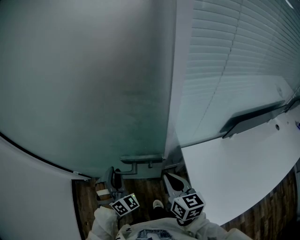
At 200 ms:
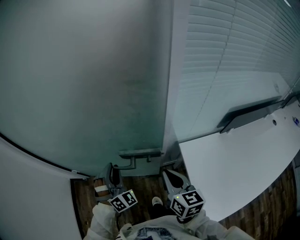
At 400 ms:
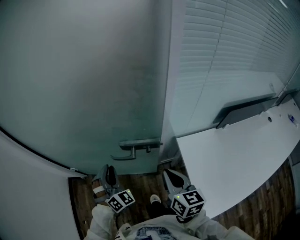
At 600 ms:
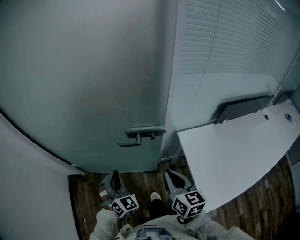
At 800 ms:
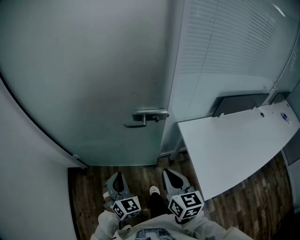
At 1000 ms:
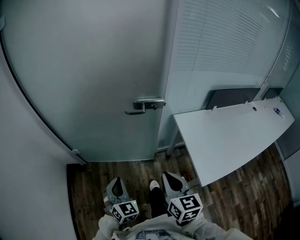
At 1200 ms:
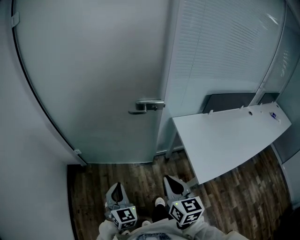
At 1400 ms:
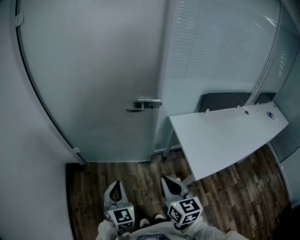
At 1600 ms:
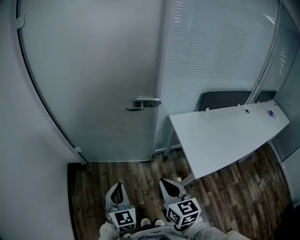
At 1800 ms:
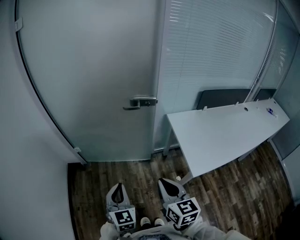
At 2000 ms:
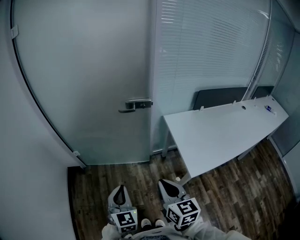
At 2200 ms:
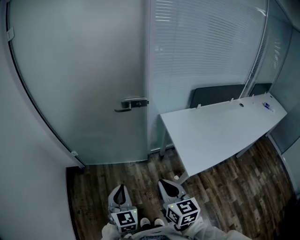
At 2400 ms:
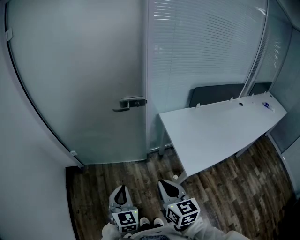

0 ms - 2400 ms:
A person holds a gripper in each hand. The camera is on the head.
0 ms - 1200 ms: The grippers both shift backward and to the left by some 40 cm. The left gripper rolls counterclockwise, seen from behind, by roughly 40 degrees, and closes its fingers.
1200 ms - 2400 ms: The left gripper shifts some 10 cm backward and to the right, while the right gripper moves backward, approximately 10 cm.

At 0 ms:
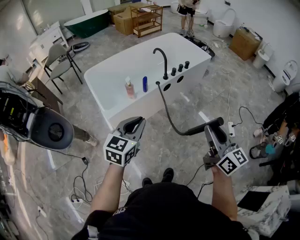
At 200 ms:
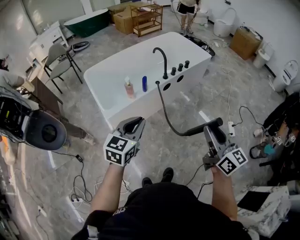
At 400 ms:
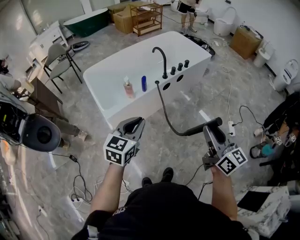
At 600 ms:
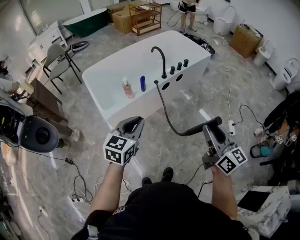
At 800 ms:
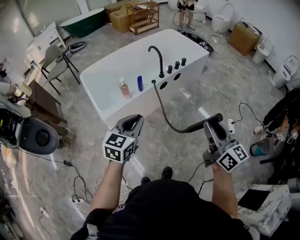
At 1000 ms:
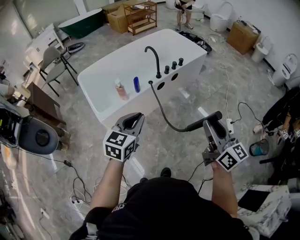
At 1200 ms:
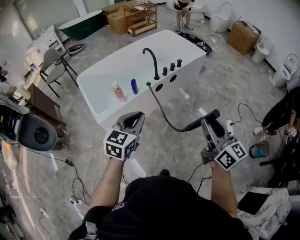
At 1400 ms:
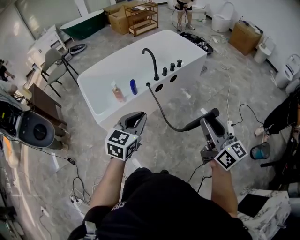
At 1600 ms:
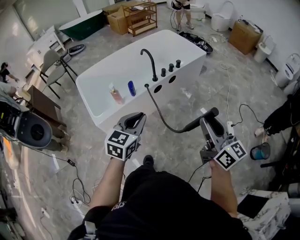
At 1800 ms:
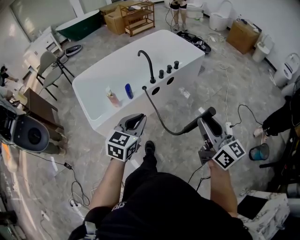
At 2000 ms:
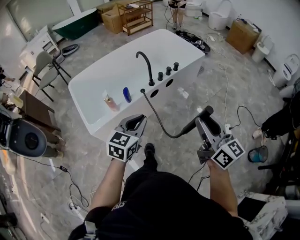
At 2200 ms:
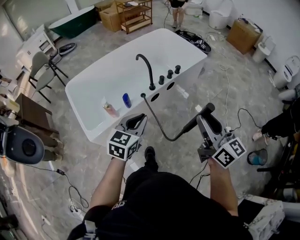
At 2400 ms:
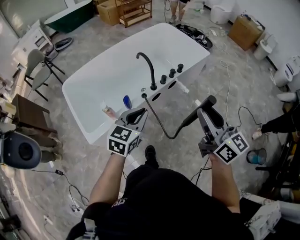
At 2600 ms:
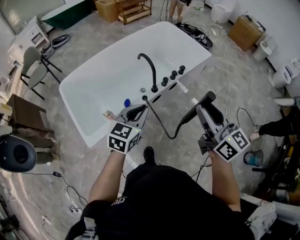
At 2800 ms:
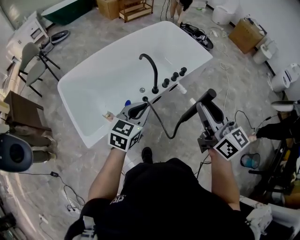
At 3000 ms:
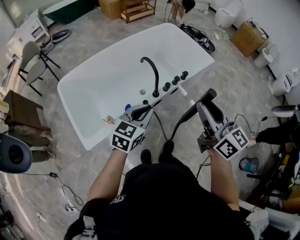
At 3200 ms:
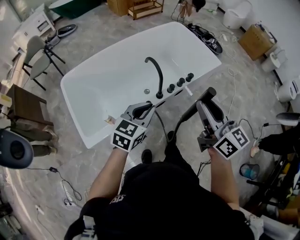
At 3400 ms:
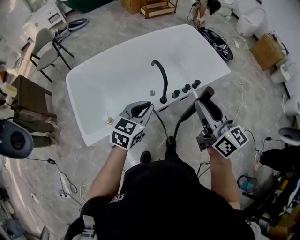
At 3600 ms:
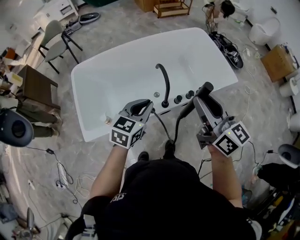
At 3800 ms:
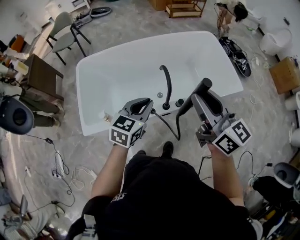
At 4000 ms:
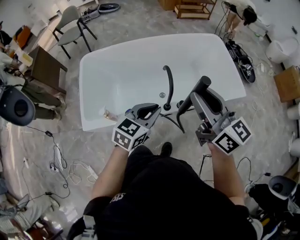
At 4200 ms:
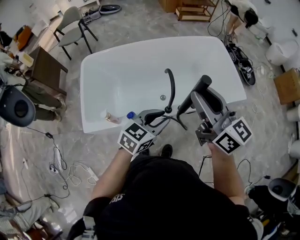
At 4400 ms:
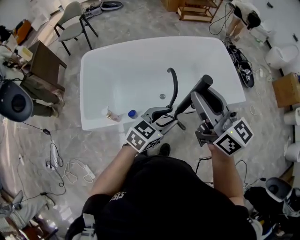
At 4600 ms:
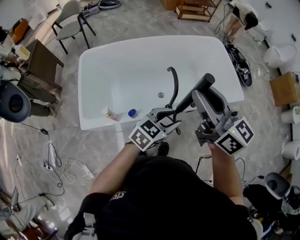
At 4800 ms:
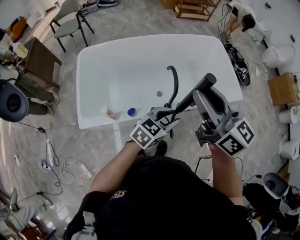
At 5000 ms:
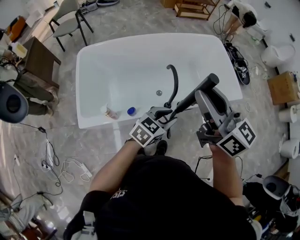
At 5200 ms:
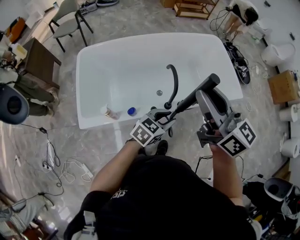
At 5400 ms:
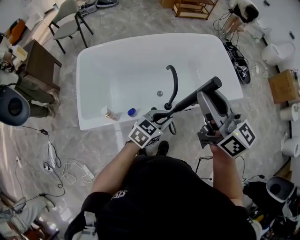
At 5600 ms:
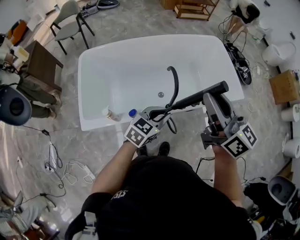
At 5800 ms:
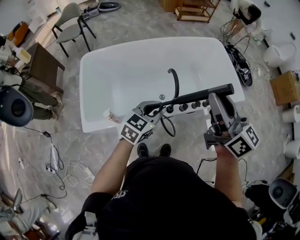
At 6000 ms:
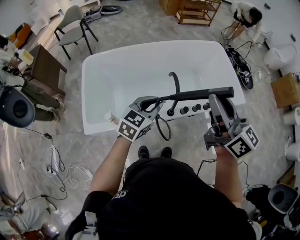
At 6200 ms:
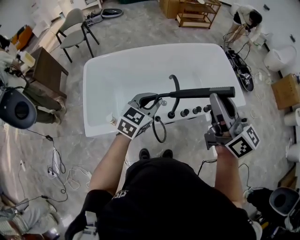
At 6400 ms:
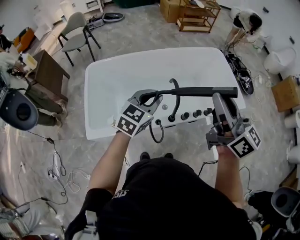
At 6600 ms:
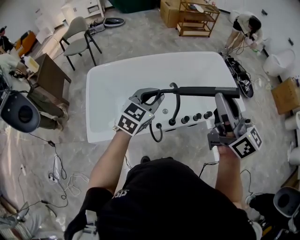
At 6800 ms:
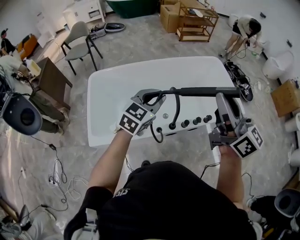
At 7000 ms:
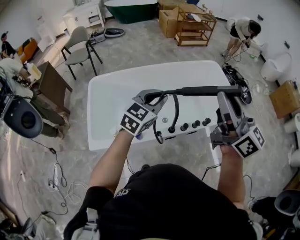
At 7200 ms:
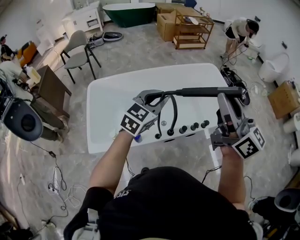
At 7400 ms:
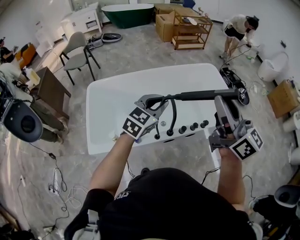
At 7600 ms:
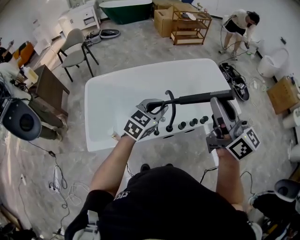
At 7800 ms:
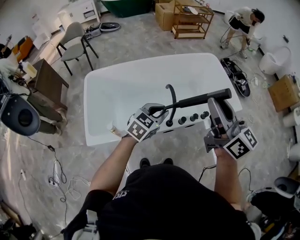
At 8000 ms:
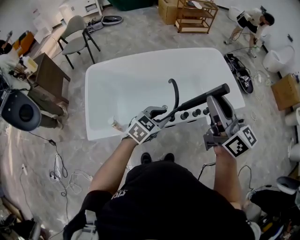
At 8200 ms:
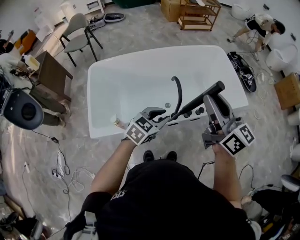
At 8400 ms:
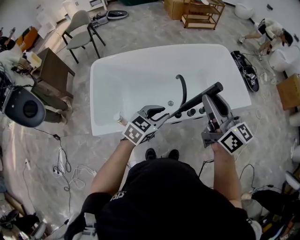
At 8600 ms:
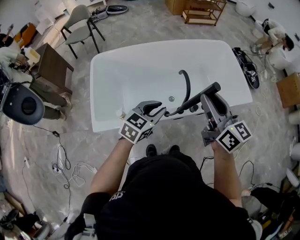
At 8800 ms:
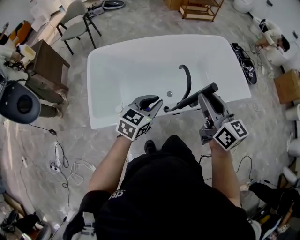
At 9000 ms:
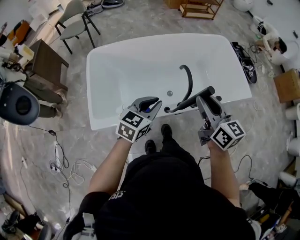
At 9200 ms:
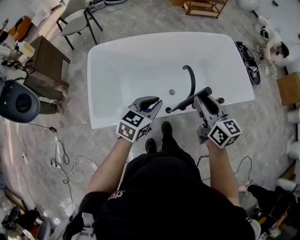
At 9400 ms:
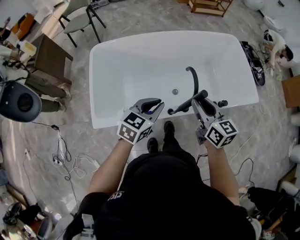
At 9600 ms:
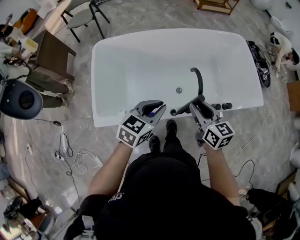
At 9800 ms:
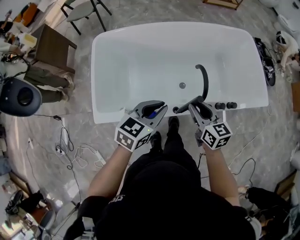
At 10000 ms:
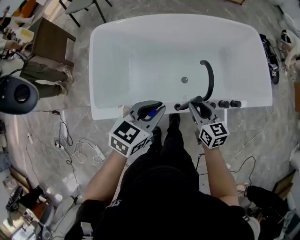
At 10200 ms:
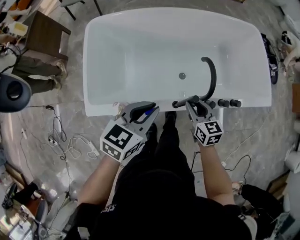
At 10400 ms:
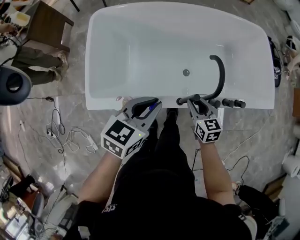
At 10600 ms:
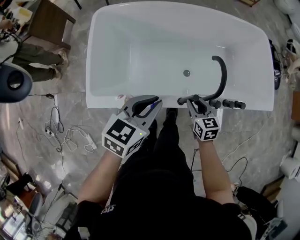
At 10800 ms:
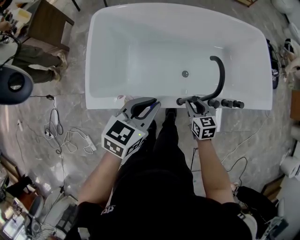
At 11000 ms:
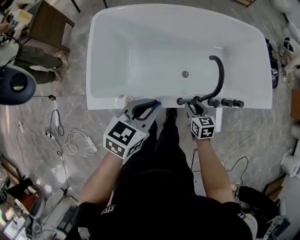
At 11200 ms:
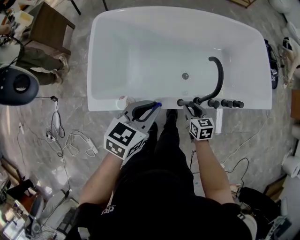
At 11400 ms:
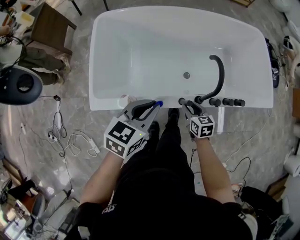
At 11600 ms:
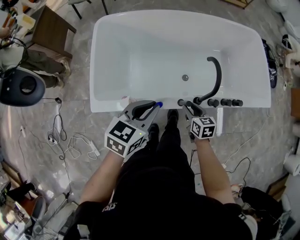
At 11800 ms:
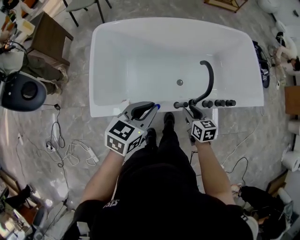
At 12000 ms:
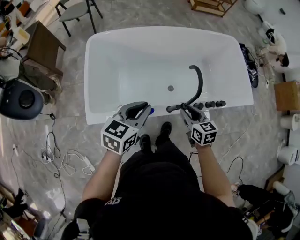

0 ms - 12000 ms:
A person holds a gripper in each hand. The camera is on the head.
0 ms - 1600 ms: The two grippers go approximately 15 cm to the right and forward.
1600 ms - 3000 ms: The two grippers go approximately 40 cm forward.
3000 ms - 4400 ms: The left gripper shifts about 15 cm forward and to the right, and opens; the right gripper heads forward, covering some 20 cm, and turns by approximately 30 degrees.
4400 ms - 6000 ms: The left gripper travels to the left and forward by some 10 cm, and closes up.
6000 ms - 7600 ms: The grippers both shift upward by about 5 cm.
7600 ms - 9000 ms: The left gripper goes some 15 cm to the left and downward. The right gripper moves downward and to the left, some 20 cm, and rotates approximately 20 degrees.
9000 ms - 10400 ms: The left gripper goes some 10 cm downward and forward. The right gripper heads downward, covering about 30 cm, and turns by about 30 degrees.
10400 ms - 12000 ms: The right gripper heads upward and backward, covering some 10 cm, while the left gripper travels to the left and upward by roughly 10 cm.

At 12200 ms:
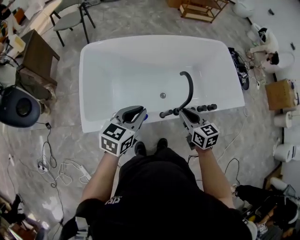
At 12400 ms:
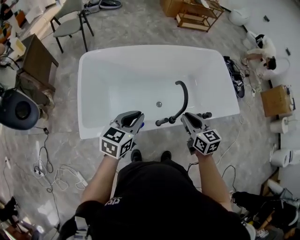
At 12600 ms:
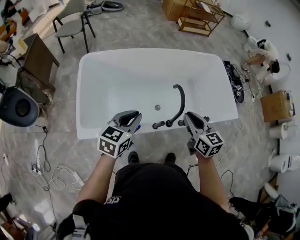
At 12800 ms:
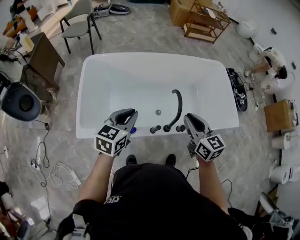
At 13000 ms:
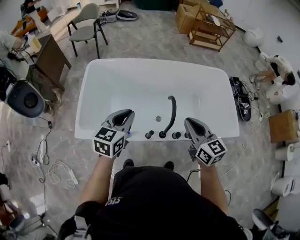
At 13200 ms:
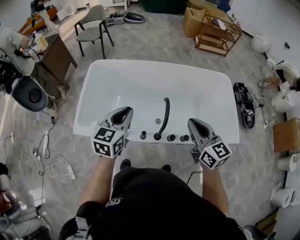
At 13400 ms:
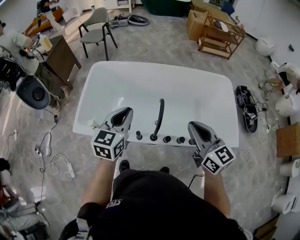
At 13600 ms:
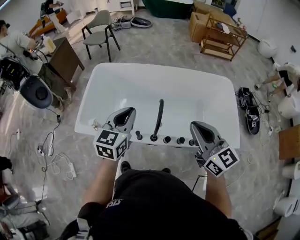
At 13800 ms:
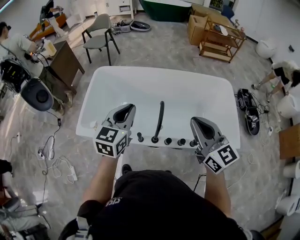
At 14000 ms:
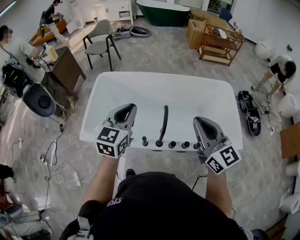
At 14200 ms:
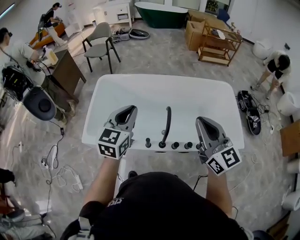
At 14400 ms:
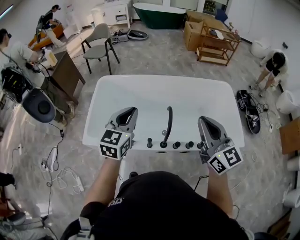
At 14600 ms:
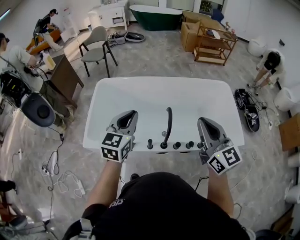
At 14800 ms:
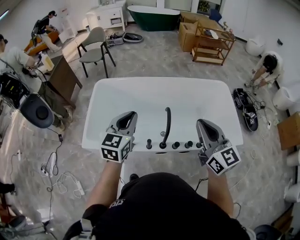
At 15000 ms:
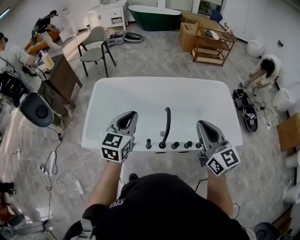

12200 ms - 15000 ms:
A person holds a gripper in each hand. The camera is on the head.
12200 ms - 13600 ms: The right gripper changes place by about 35 cm, and rotates about 30 degrees. Meanwhile the left gripper moves approximately 25 cm, and turns by approximately 30 degrees.
13600 ms - 15000 ms: The right gripper shifts by some 5 cm. The left gripper travels to the left by roughly 5 cm.

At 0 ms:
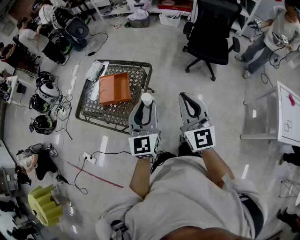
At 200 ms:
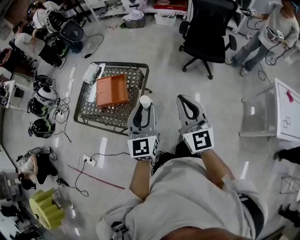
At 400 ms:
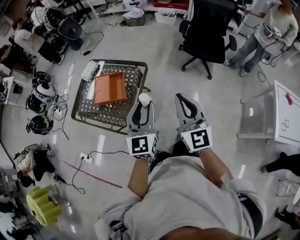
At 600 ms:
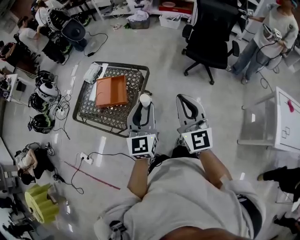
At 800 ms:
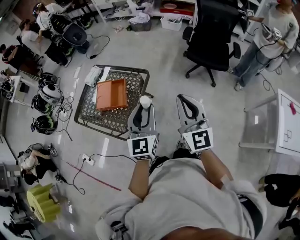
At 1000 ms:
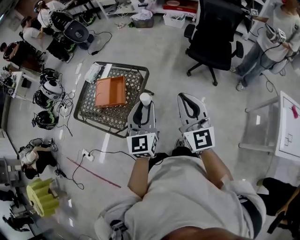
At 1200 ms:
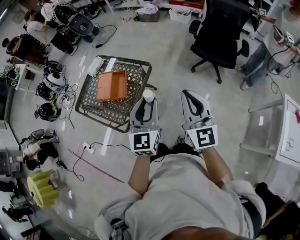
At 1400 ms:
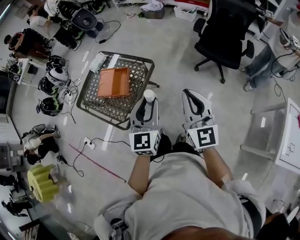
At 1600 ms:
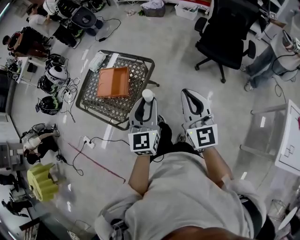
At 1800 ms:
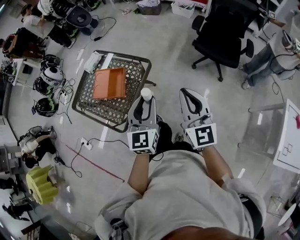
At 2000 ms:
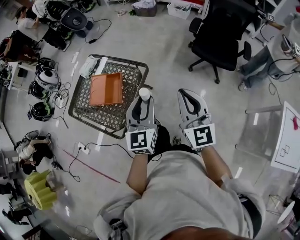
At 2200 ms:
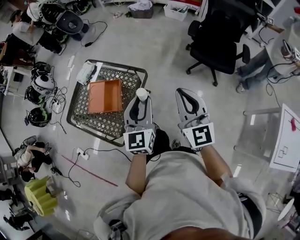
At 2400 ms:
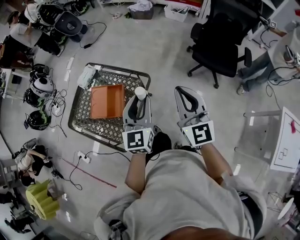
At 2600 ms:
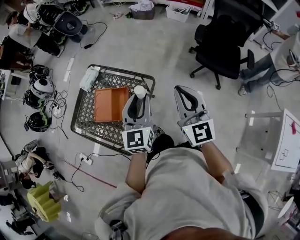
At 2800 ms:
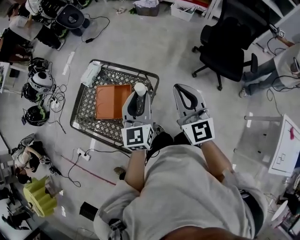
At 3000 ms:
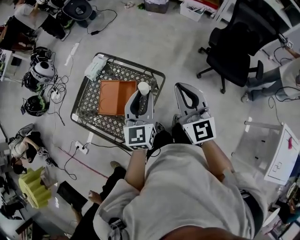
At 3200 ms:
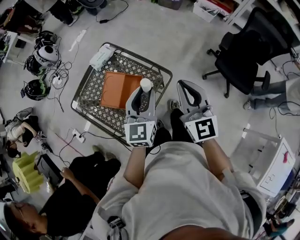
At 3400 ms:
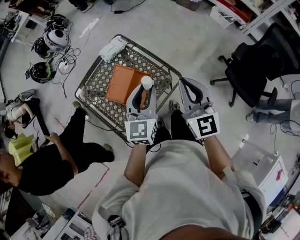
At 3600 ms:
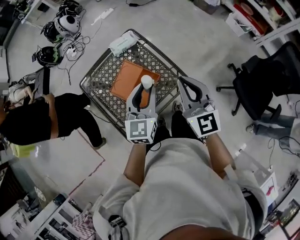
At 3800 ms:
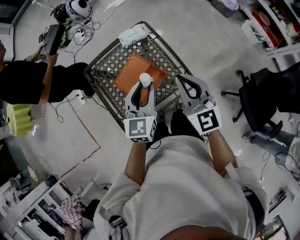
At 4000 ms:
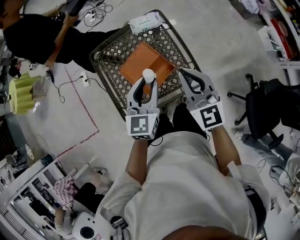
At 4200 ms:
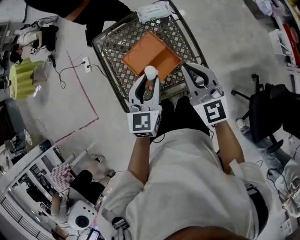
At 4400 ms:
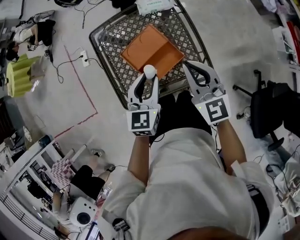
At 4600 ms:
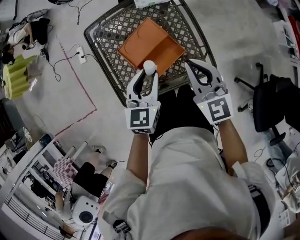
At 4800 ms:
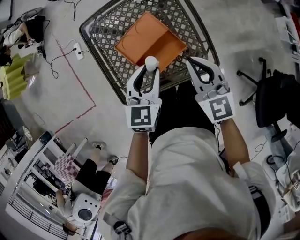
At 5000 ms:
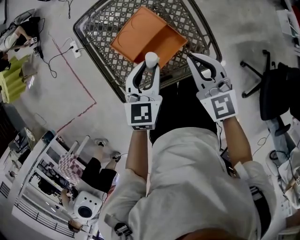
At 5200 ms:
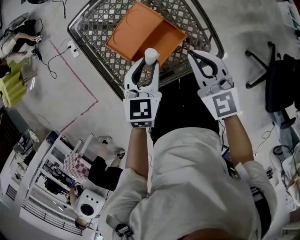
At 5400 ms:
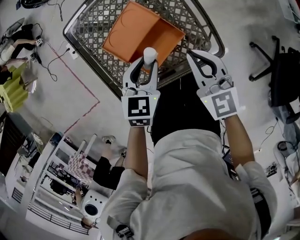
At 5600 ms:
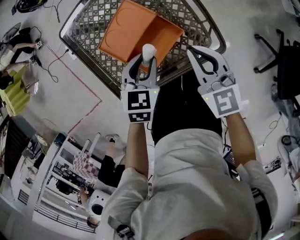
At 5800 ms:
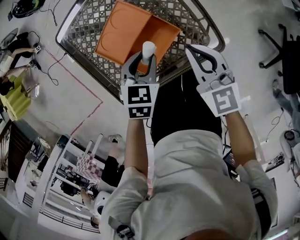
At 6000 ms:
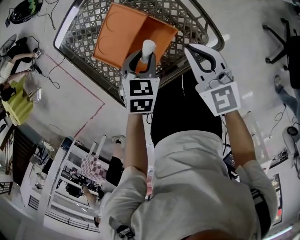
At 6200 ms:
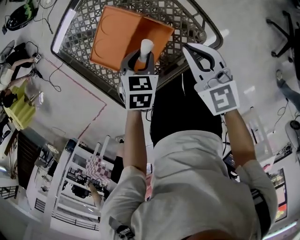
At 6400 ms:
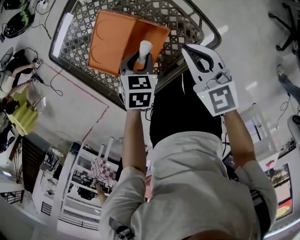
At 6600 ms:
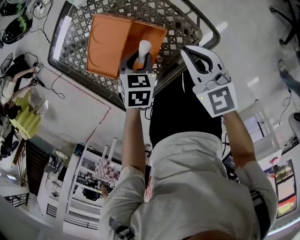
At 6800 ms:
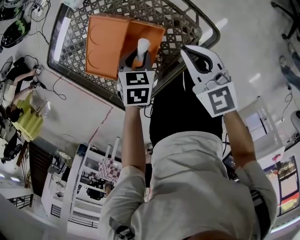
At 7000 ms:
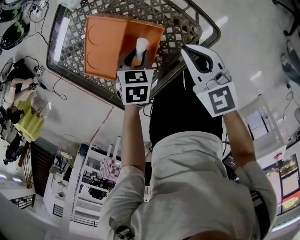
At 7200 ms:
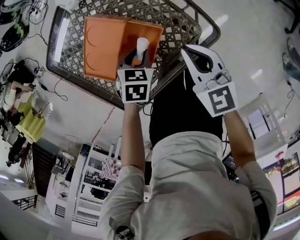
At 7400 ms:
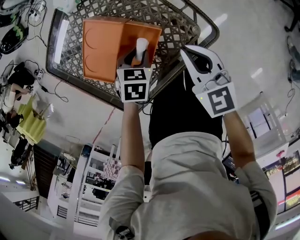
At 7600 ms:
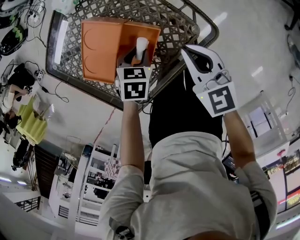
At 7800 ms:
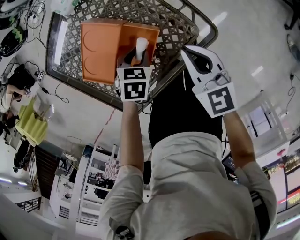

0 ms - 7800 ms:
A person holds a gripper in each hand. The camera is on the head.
0 ms - 1600 ms: Both grippers travel together to the right and forward, roughly 10 cm.
1600 ms - 3200 ms: Both grippers move forward and to the left, approximately 35 cm.
3200 ms - 4600 ms: The left gripper changes place by roughly 20 cm, and rotates some 40 degrees; the right gripper moves some 25 cm, and swivels about 50 degrees.
4600 ms - 6200 ms: Both grippers move downward, some 20 cm. The left gripper tips its fingers downward by some 30 degrees.
6200 ms - 7800 ms: The left gripper travels downward by about 5 cm. Meanwhile the right gripper shifts by about 5 cm.
